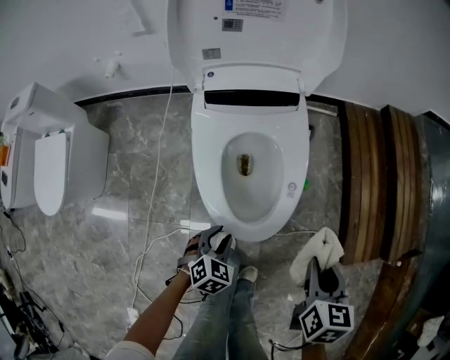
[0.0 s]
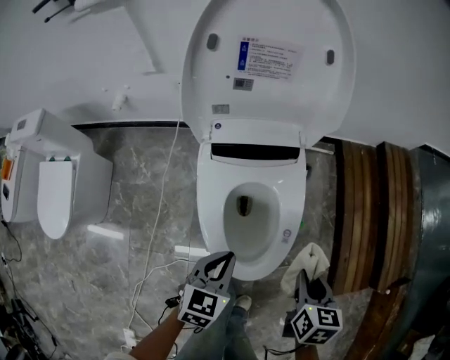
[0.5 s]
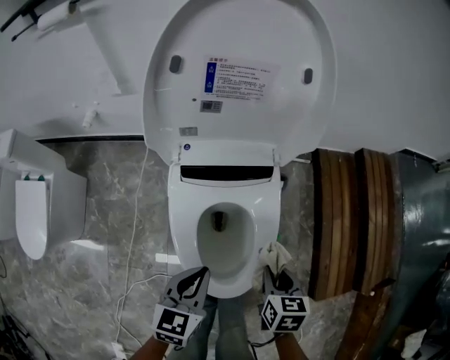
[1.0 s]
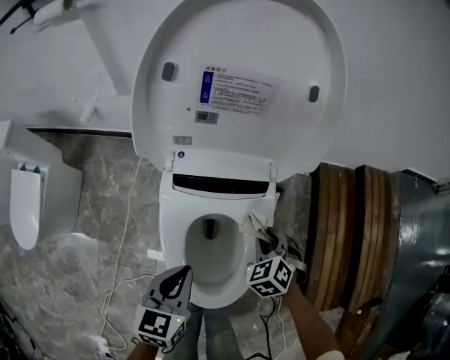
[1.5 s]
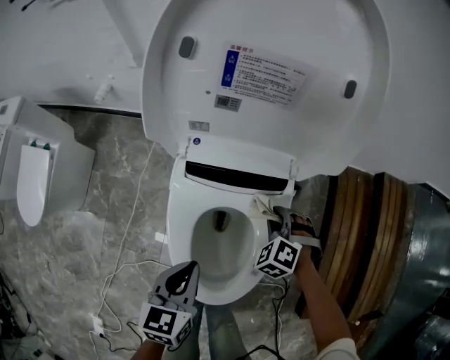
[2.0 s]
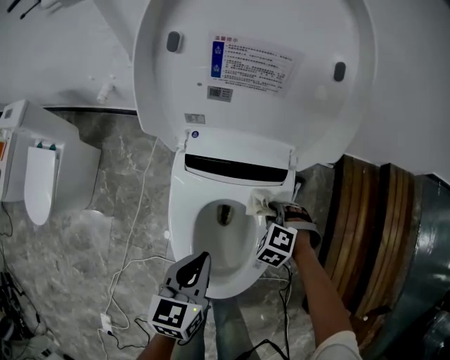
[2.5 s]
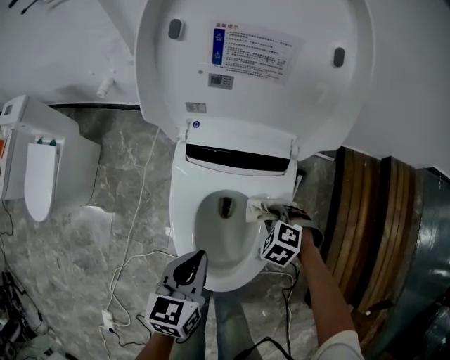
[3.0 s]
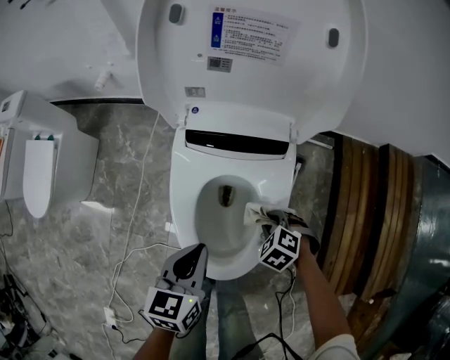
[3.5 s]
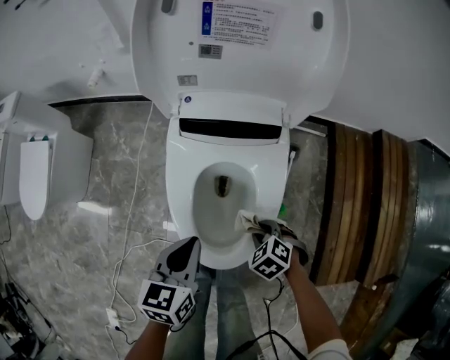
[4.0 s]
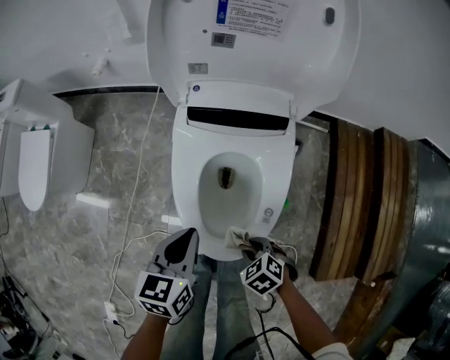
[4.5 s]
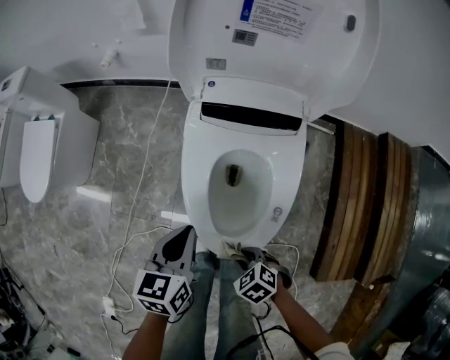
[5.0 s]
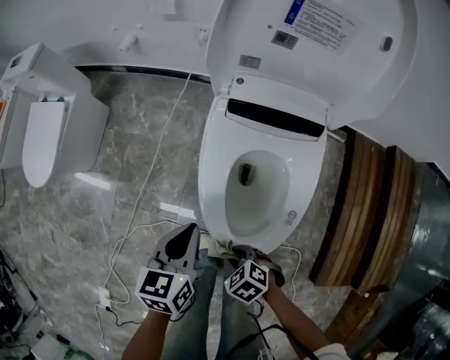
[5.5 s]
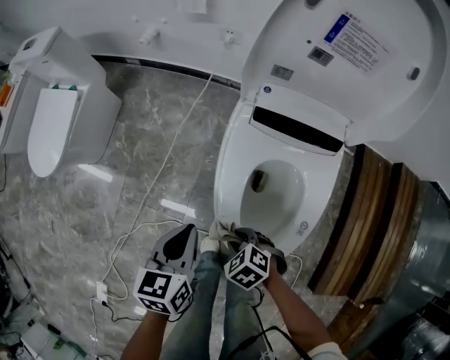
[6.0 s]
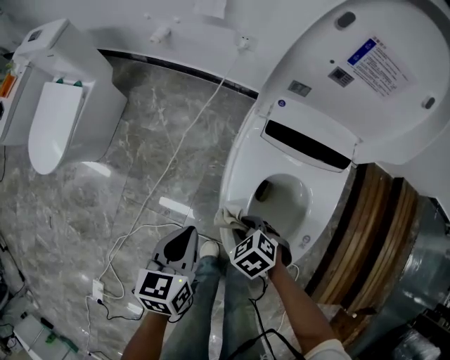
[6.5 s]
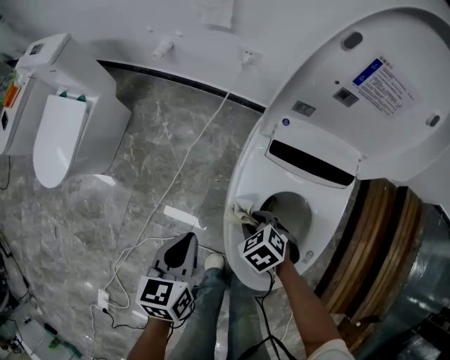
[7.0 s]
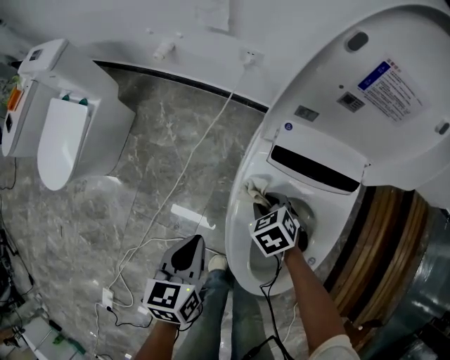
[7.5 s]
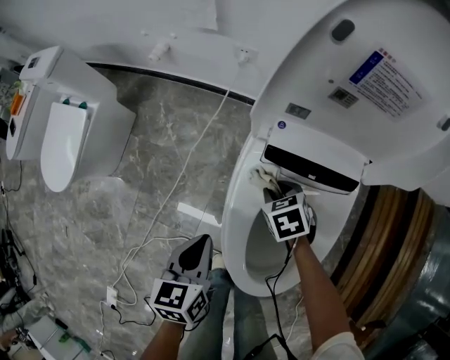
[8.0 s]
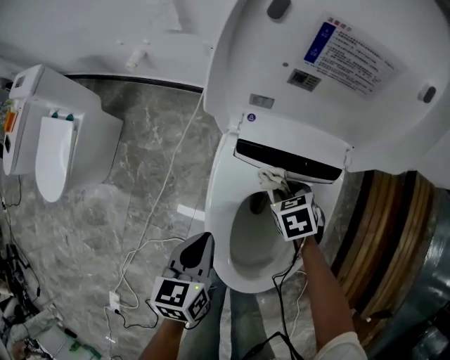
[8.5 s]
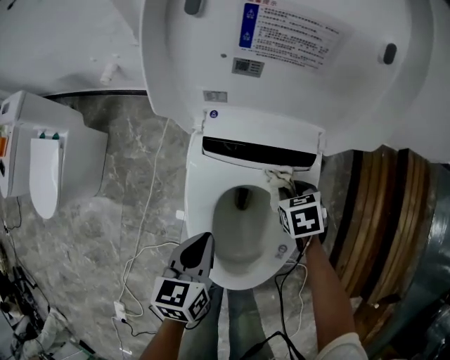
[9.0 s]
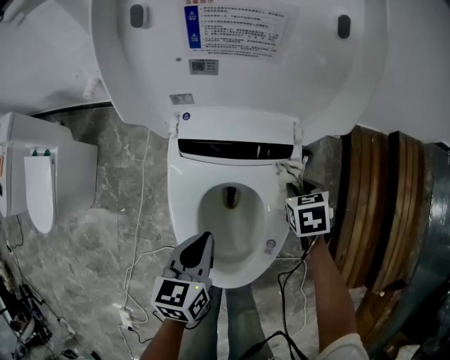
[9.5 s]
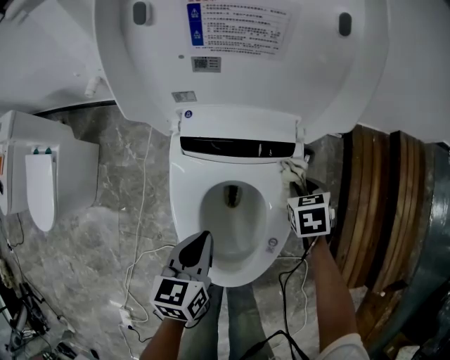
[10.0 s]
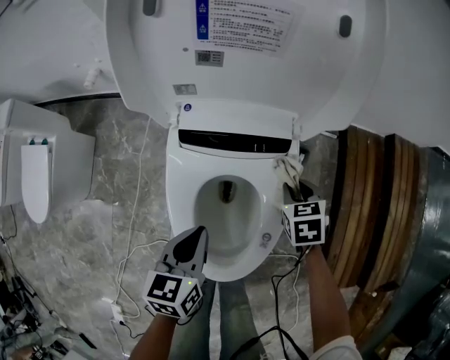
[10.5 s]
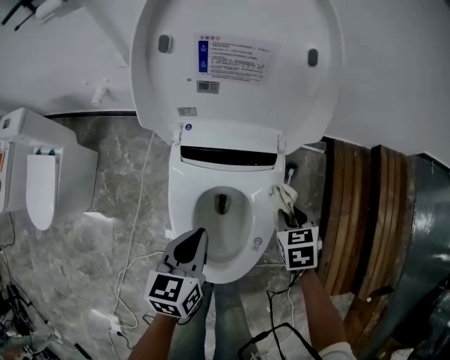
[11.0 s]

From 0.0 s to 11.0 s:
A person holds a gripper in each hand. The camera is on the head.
From 0.0 s to 2.0 s: The left gripper travels forward and upward by some 25 cm, twists approximately 40 degrees counterclockwise, seen from behind, and closes up. Meanwhile the right gripper travels forward by about 35 cm, and rotates around the line of its fingers by some 90 degrees, counterclockwise from behind.
From 2.0 s to 3.5 s: The right gripper moves some 15 cm, and turns by about 20 degrees.
From 3.5 s to 5.5 s: The right gripper moves about 25 cm. Meanwhile the left gripper shifts by roughly 10 cm.
From 5.5 s to 7.5 s: The left gripper goes approximately 10 cm forward. Meanwhile the right gripper shifts some 30 cm forward.
From 7.5 s to 9.0 s: Both grippers move to the right, roughly 20 cm. The right gripper swivels approximately 30 degrees.
From 9.0 s to 11.0 s: The left gripper goes about 5 cm upward. Meanwhile the right gripper shifts roughly 15 cm upward, to the right and backward.

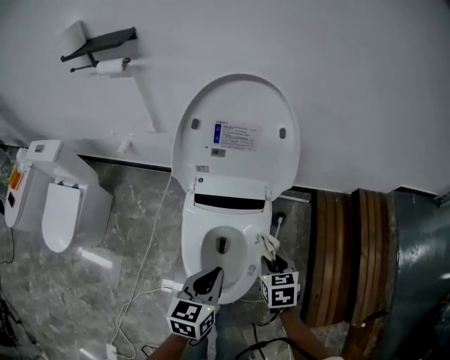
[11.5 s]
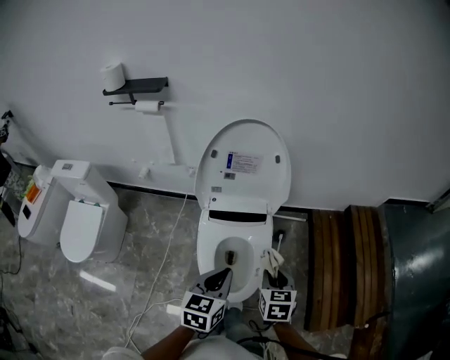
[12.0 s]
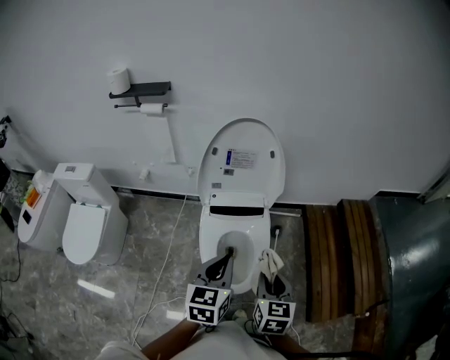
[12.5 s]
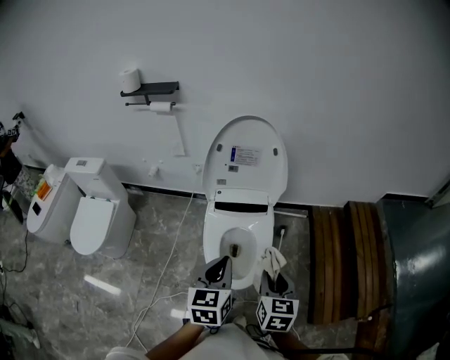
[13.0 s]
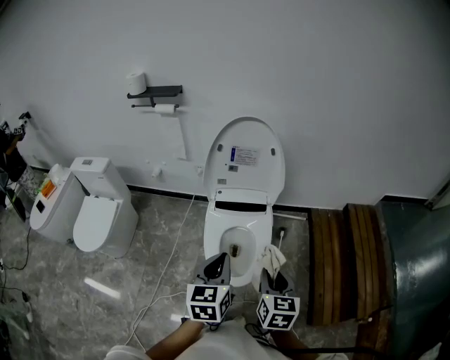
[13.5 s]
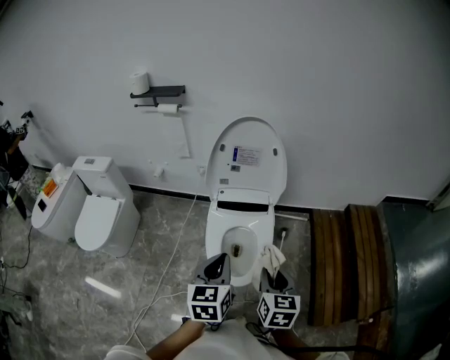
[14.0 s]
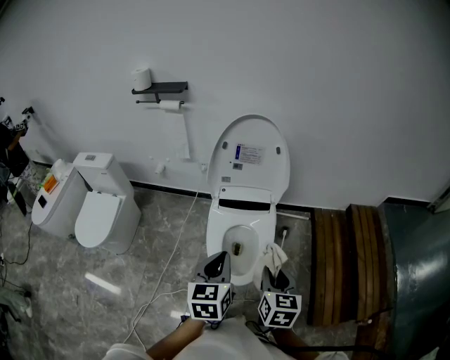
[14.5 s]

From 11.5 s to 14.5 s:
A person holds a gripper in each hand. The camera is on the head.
From 11.5 s to 13.0 s: Both grippers move upward and backward, about 25 cm. The right gripper swivels approximately 30 degrees.
From 13.0 s to 14.5 s: There are only small adjustments of the grippers.

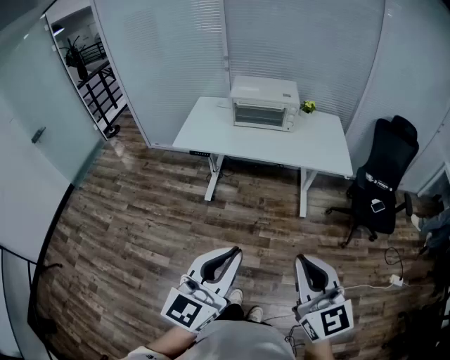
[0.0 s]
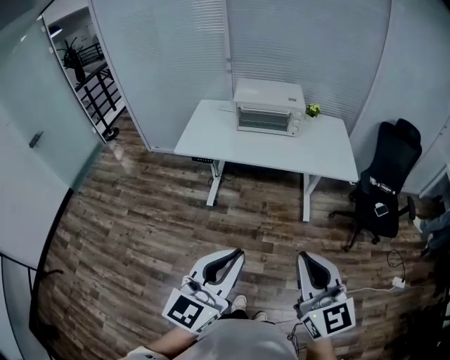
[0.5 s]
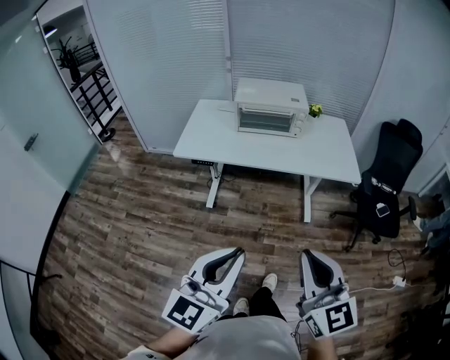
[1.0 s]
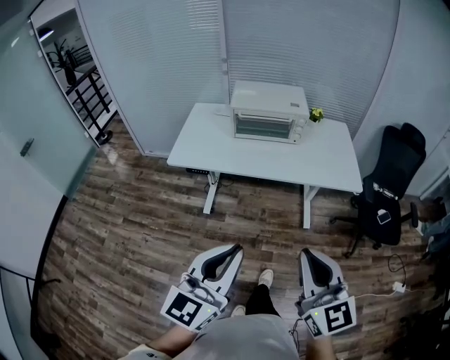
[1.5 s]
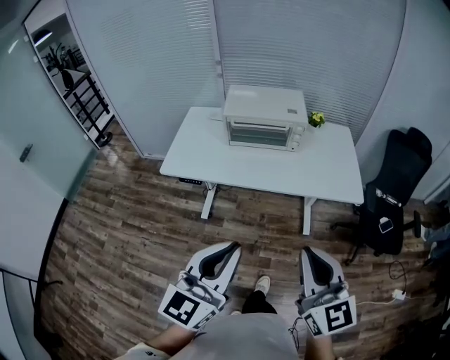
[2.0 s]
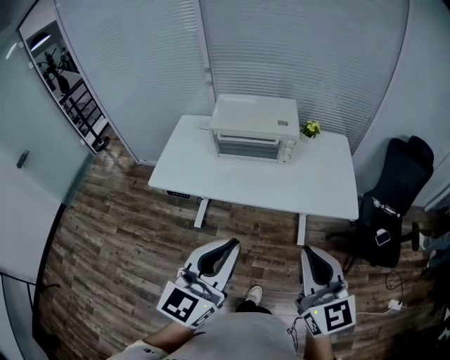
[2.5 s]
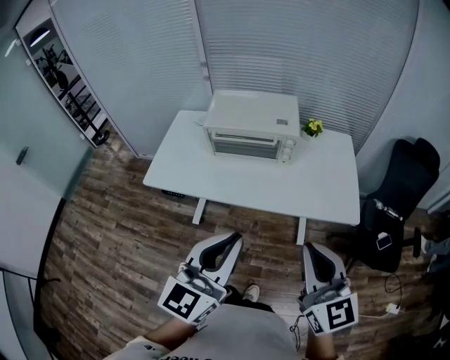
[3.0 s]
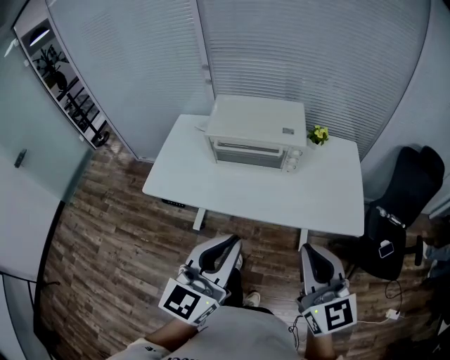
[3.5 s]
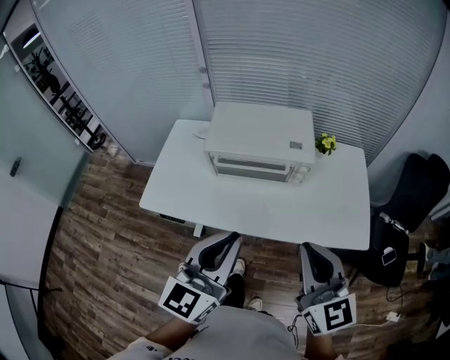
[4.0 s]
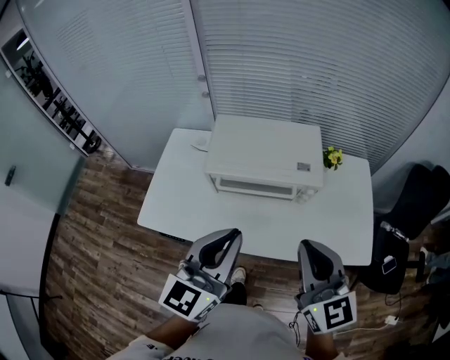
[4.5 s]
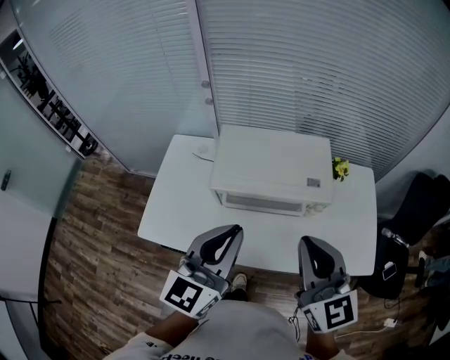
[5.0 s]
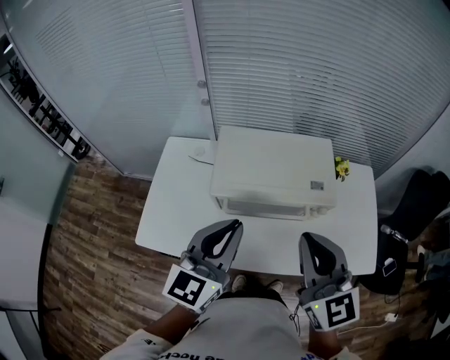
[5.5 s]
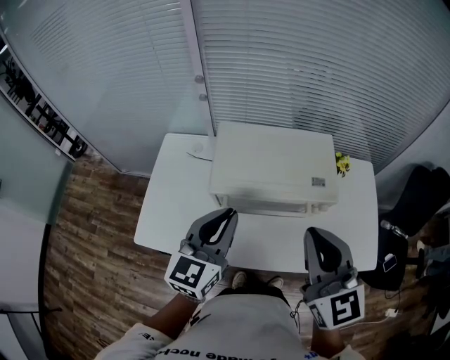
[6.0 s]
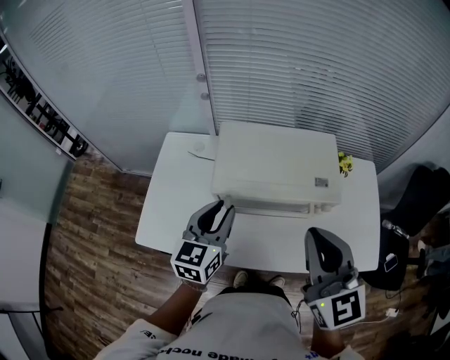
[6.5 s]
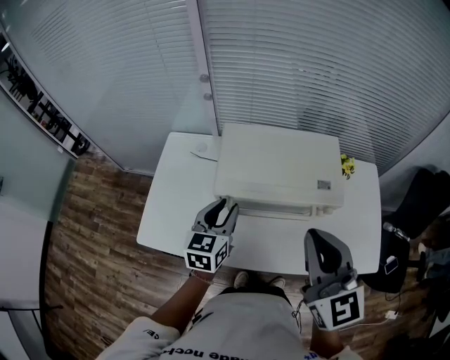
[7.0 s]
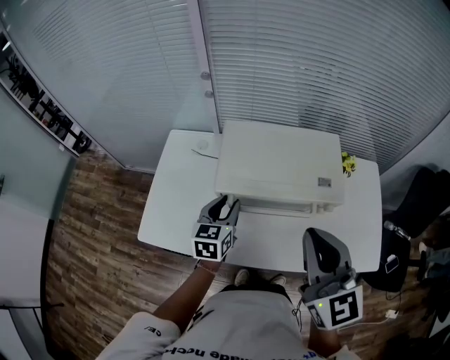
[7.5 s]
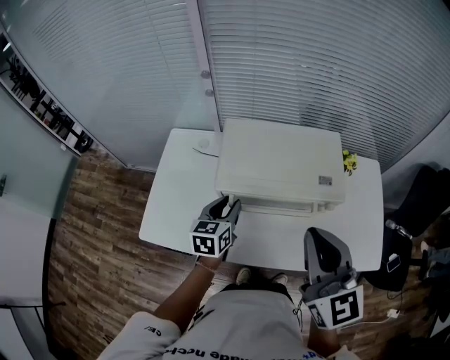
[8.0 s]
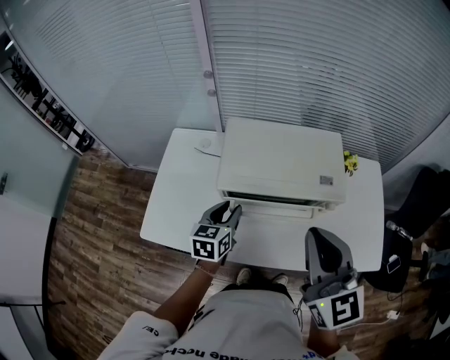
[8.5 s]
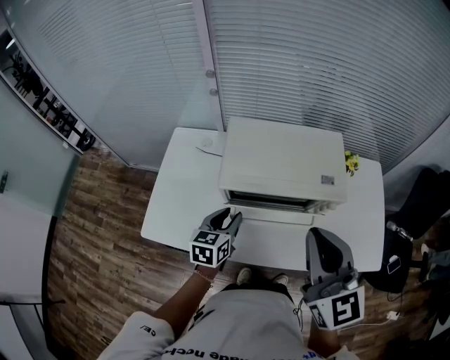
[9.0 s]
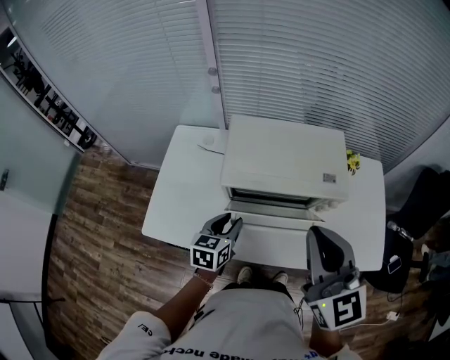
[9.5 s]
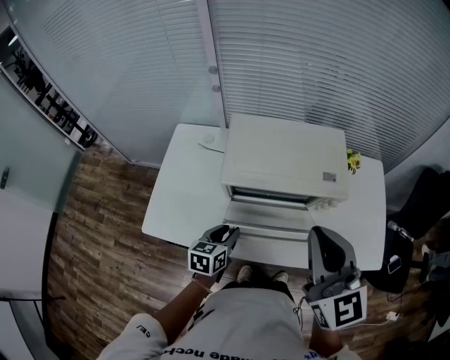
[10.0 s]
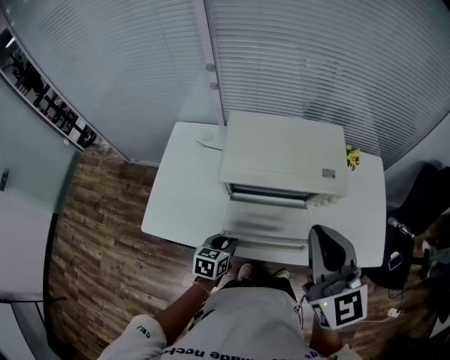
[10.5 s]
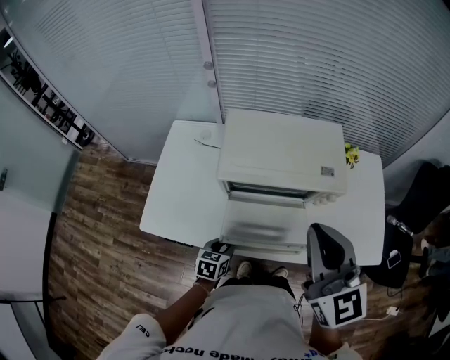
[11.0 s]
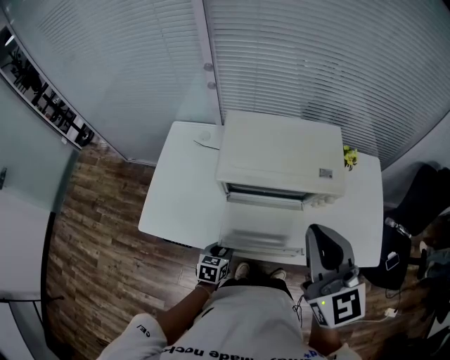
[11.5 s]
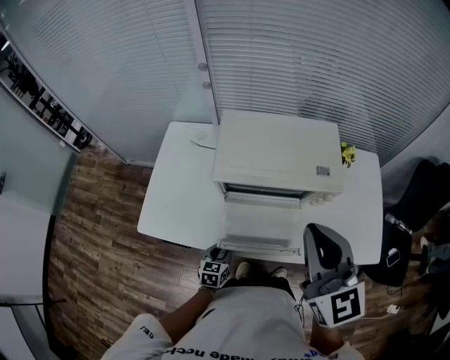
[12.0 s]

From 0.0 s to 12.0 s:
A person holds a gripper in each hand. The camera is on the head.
From 0.0 s to 2.0 s: The grippers both shift forward by roughly 25 cm.
From 2.0 s to 4.0 s: The grippers both shift forward by approximately 30 cm.
From 4.0 s to 6.0 s: The left gripper travels forward by roughly 25 cm, while the right gripper is displaced forward and to the left by approximately 20 cm.
From 6.0 s to 8.0 s: The left gripper travels downward and forward by some 20 cm, changes its angle by about 20 degrees, and opens its fingers.
From 8.0 s to 10.0 s: The left gripper is displaced backward and downward by some 10 cm.
From 10.0 s to 12.0 s: The left gripper is displaced downward and backward by approximately 15 cm.

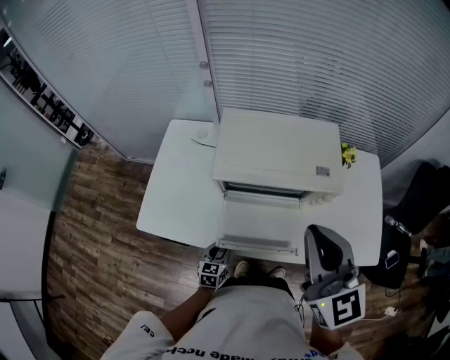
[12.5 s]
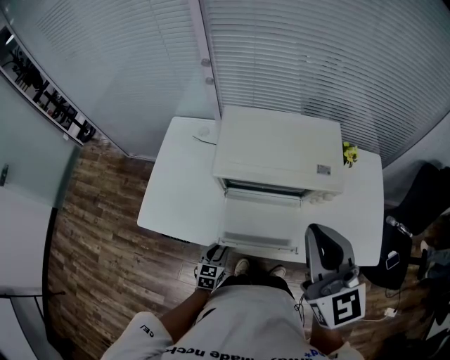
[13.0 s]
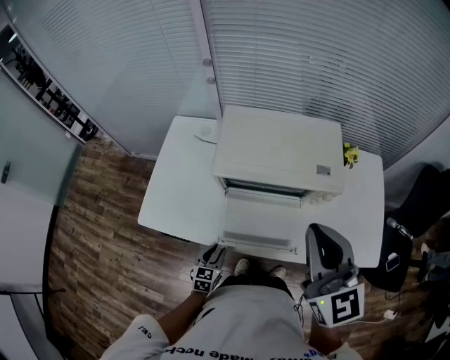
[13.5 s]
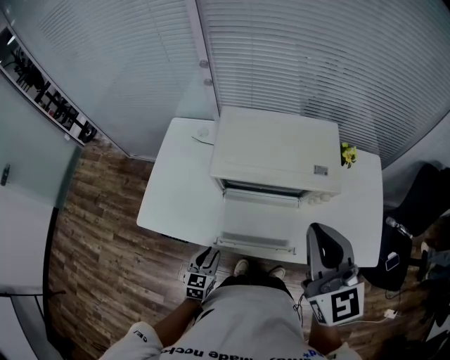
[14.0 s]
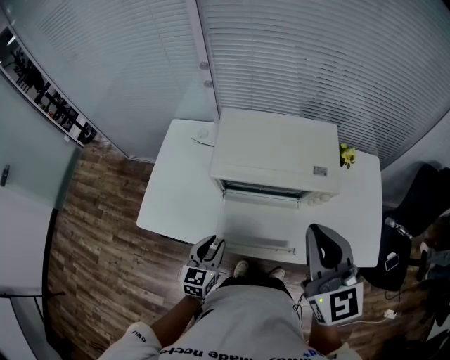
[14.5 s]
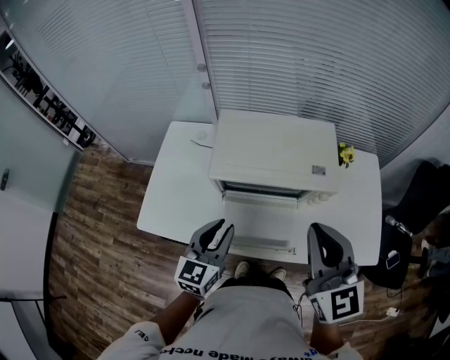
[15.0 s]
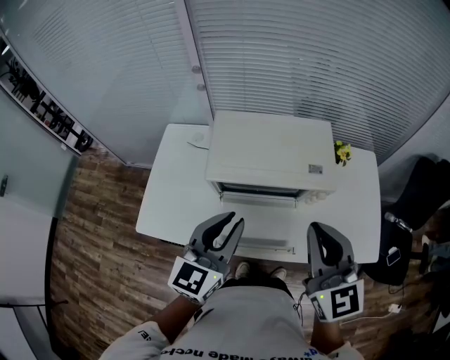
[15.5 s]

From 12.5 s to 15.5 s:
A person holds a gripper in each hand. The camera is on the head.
From 12.5 s to 14.0 s: The left gripper moves upward, about 5 cm.
From 14.0 s to 15.5 s: The left gripper shifts approximately 30 cm upward, and turns by about 30 degrees.
